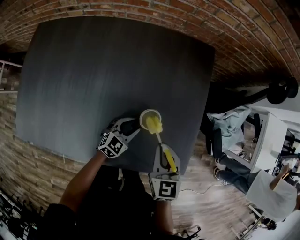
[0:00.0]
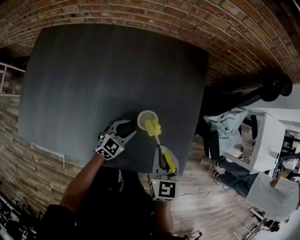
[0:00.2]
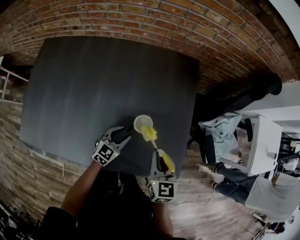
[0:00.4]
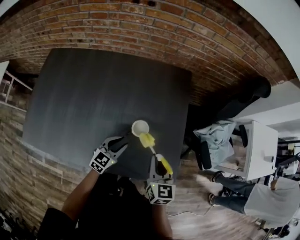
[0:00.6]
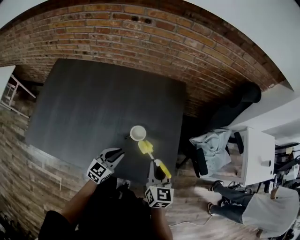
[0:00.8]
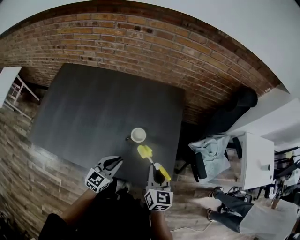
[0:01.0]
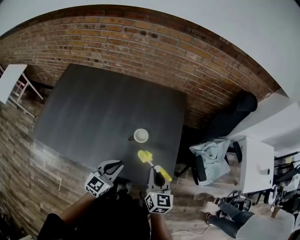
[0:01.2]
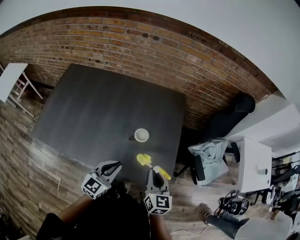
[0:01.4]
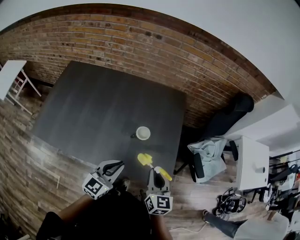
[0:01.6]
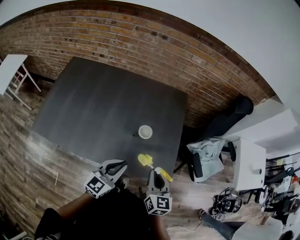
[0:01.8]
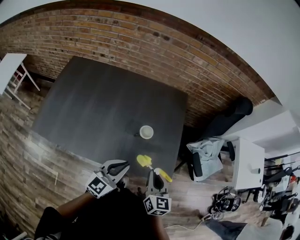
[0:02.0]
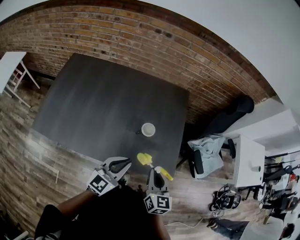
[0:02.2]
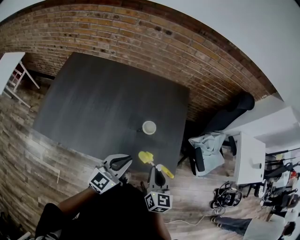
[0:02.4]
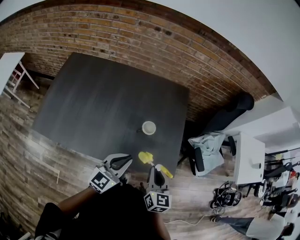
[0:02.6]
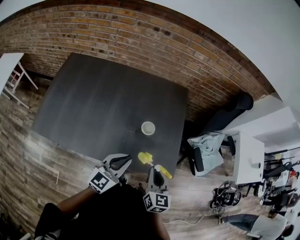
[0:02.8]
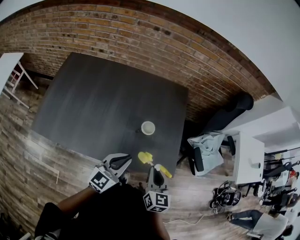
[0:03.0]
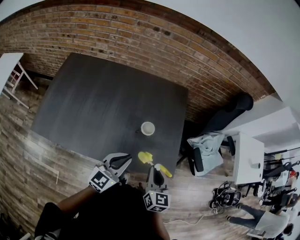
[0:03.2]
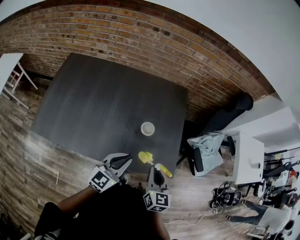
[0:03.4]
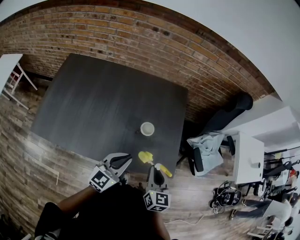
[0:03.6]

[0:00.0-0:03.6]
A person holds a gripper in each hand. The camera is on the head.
0:00.0 to 0:01.8: The left gripper shifts approximately 40 cm upward and backward, and turns by approximately 30 degrees. The right gripper travels backward and upward by some 25 cm.
0:01.8 to 0:03.6: The grippers stay close to where they were, moving slightly.

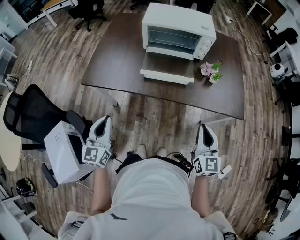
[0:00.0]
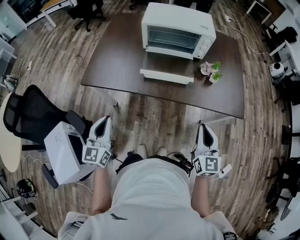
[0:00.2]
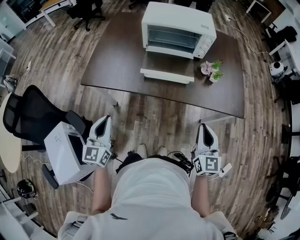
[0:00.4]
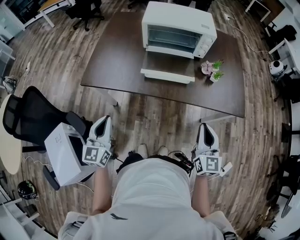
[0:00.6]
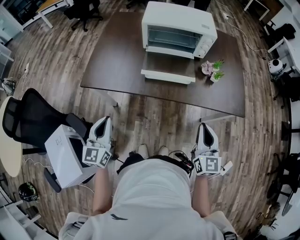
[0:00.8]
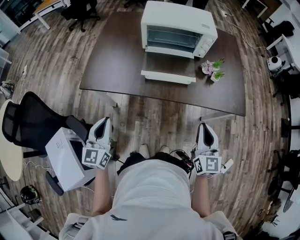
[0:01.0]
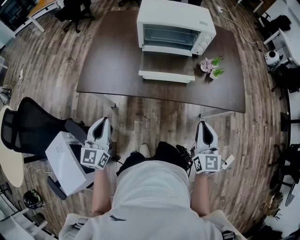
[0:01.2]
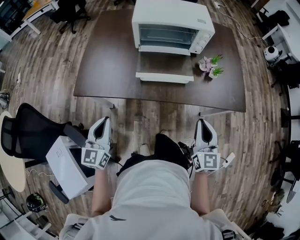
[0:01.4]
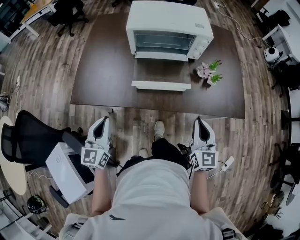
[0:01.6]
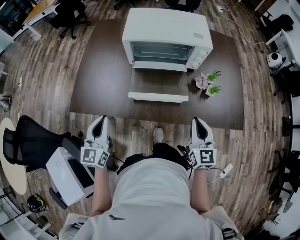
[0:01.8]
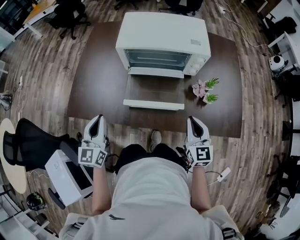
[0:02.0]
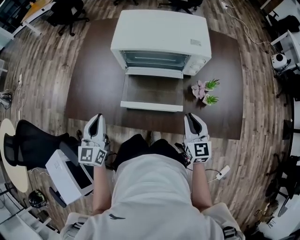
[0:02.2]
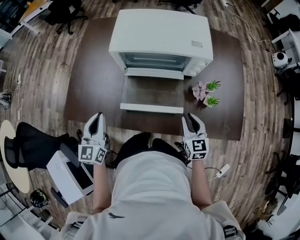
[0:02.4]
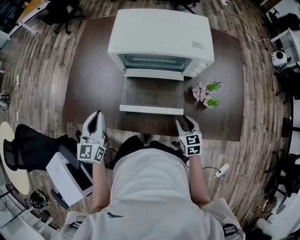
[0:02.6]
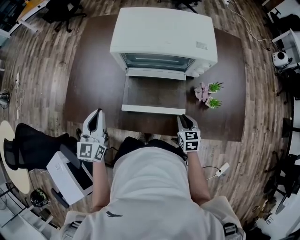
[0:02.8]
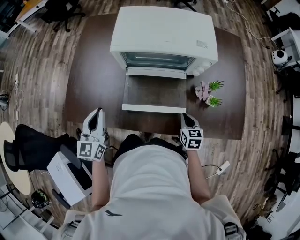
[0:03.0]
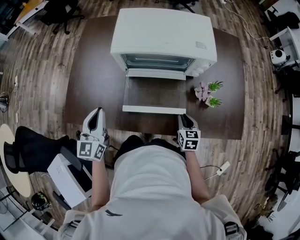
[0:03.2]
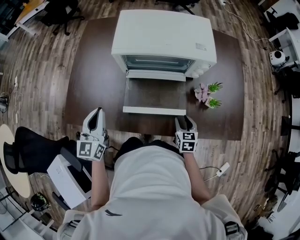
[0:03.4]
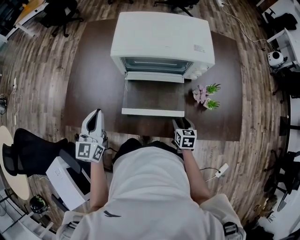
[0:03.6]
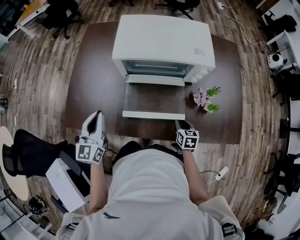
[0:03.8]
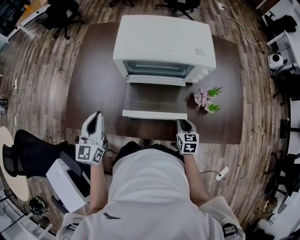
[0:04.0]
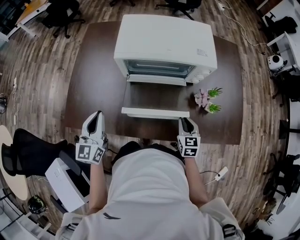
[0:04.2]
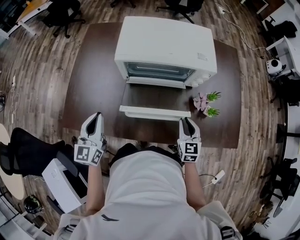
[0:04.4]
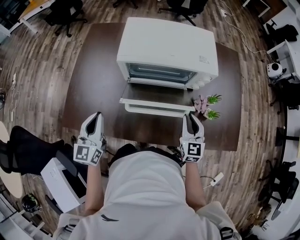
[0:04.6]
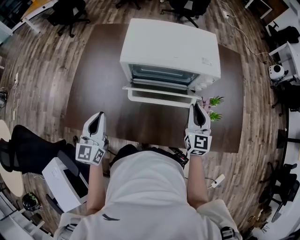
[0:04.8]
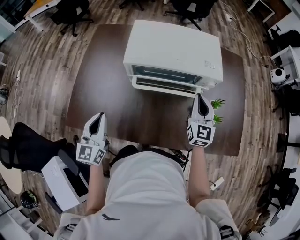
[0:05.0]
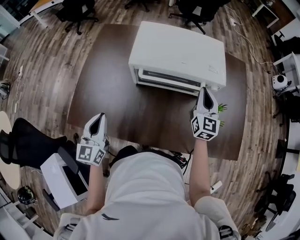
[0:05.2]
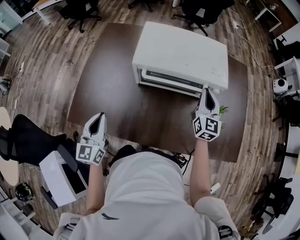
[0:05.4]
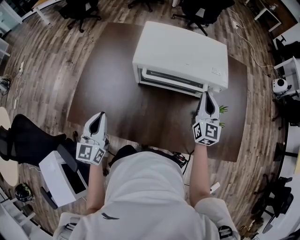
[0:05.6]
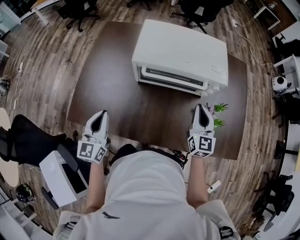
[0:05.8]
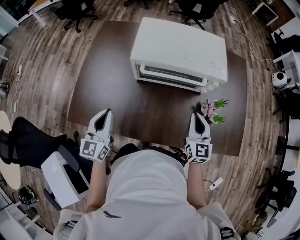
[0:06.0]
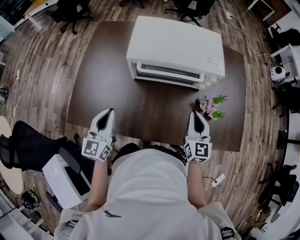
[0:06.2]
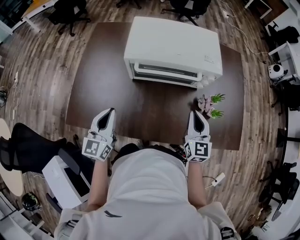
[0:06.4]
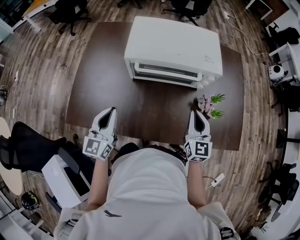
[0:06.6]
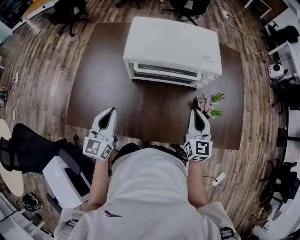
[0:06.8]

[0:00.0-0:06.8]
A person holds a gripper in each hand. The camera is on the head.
0:00.0 to 0:01.4: The left gripper shifts about 5 cm forward. The right gripper changes place by some 5 cm.
0:01.4 to 0:02.8: The left gripper heads forward, covering about 25 cm. The right gripper heads forward and downward, covering some 30 cm, points its fingers about 30 degrees further downward, and opens up.
0:02.8 to 0:04.0: The right gripper opens and closes again.
0:04.0 to 0:05.4: The right gripper is displaced upward and forward by approximately 30 cm, and tilts its fingers roughly 40 degrees upward.
0:05.4 to 0:06.8: The left gripper heads to the right, covering about 5 cm; the right gripper shifts roughly 15 cm backward.

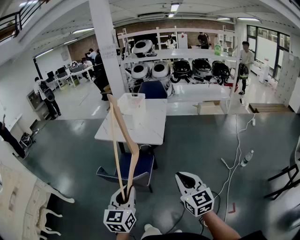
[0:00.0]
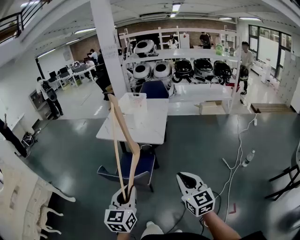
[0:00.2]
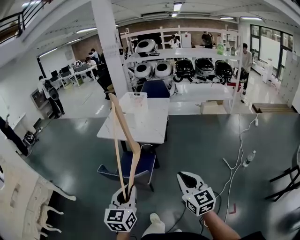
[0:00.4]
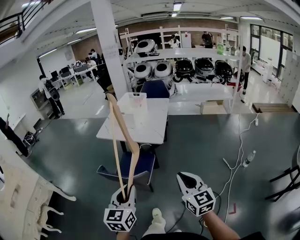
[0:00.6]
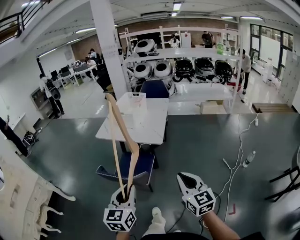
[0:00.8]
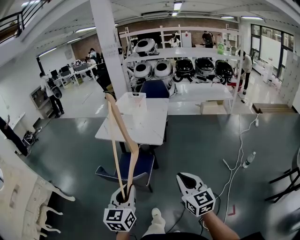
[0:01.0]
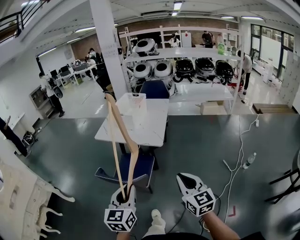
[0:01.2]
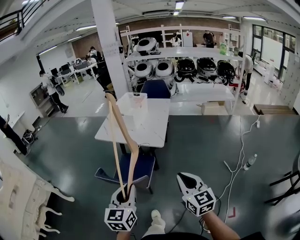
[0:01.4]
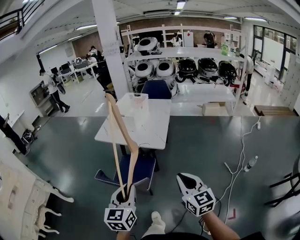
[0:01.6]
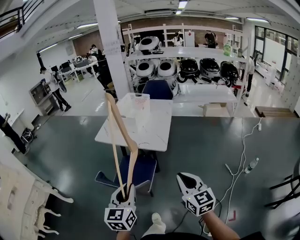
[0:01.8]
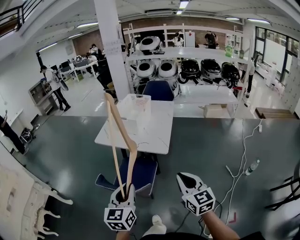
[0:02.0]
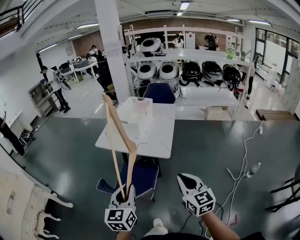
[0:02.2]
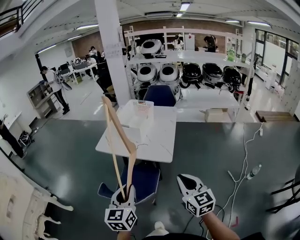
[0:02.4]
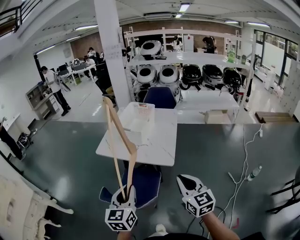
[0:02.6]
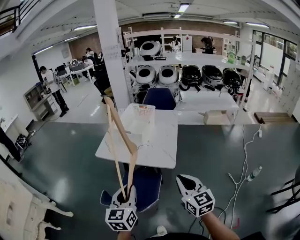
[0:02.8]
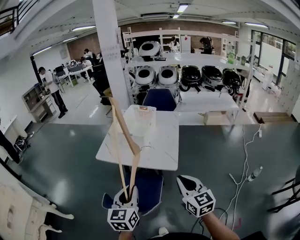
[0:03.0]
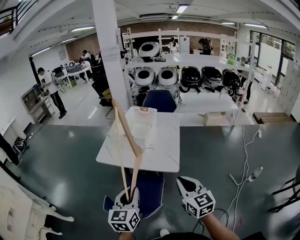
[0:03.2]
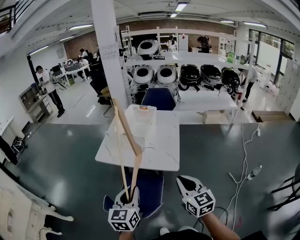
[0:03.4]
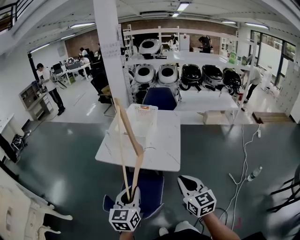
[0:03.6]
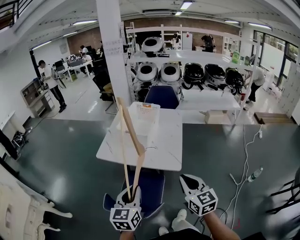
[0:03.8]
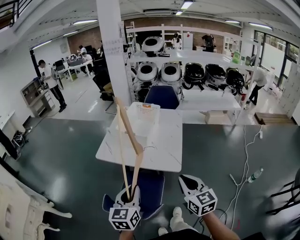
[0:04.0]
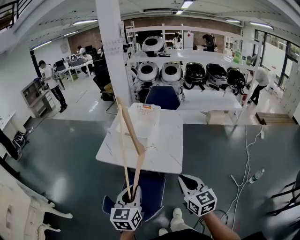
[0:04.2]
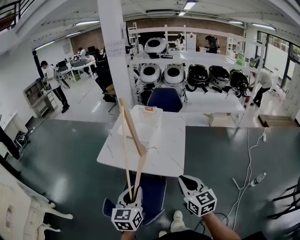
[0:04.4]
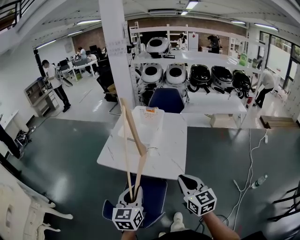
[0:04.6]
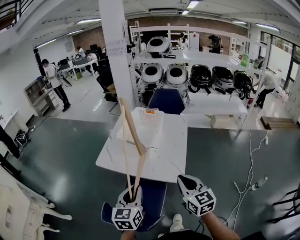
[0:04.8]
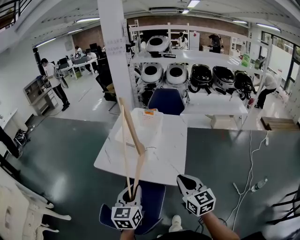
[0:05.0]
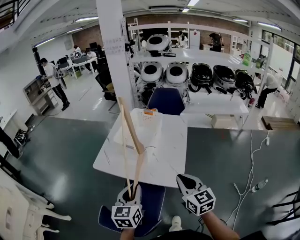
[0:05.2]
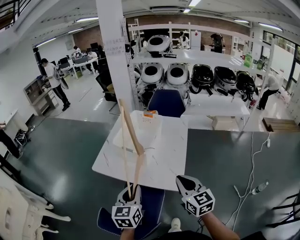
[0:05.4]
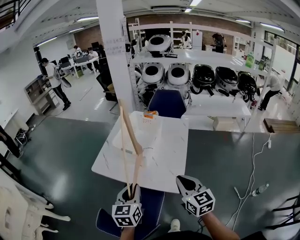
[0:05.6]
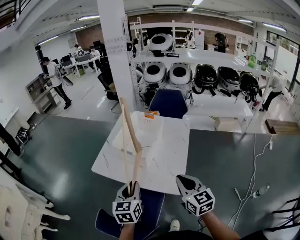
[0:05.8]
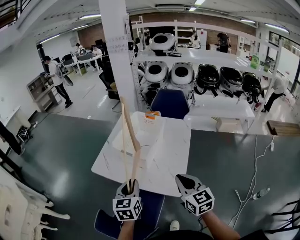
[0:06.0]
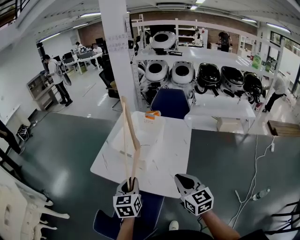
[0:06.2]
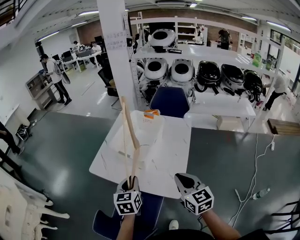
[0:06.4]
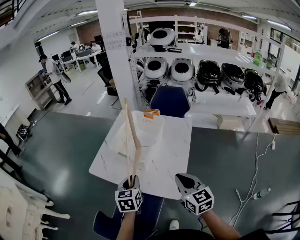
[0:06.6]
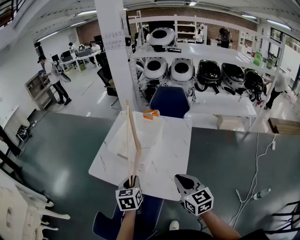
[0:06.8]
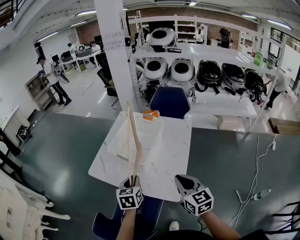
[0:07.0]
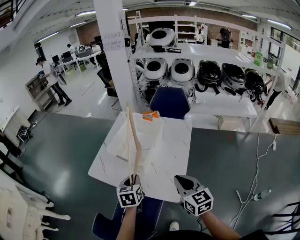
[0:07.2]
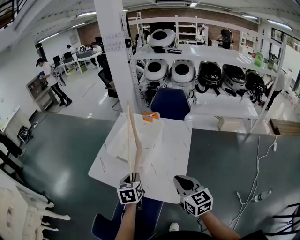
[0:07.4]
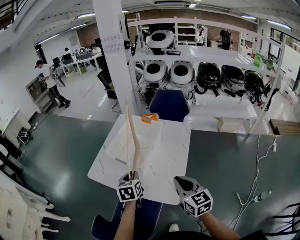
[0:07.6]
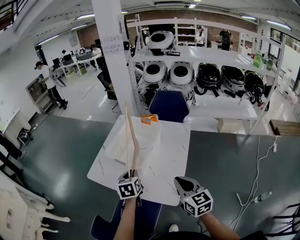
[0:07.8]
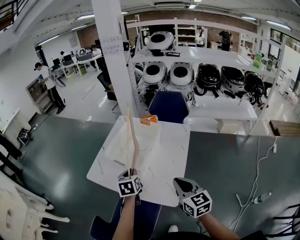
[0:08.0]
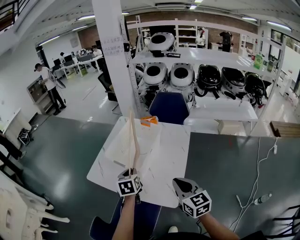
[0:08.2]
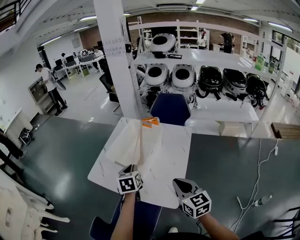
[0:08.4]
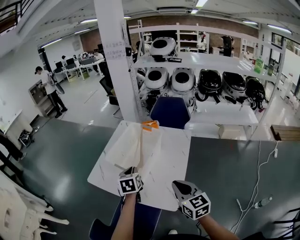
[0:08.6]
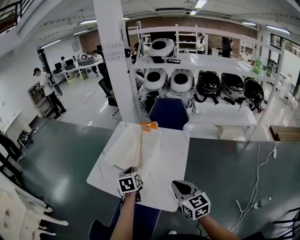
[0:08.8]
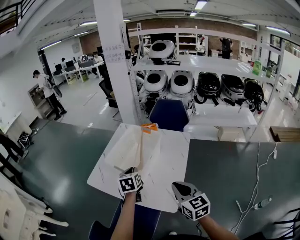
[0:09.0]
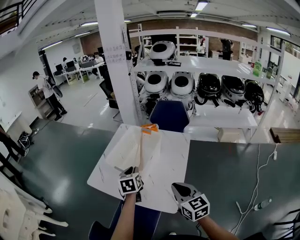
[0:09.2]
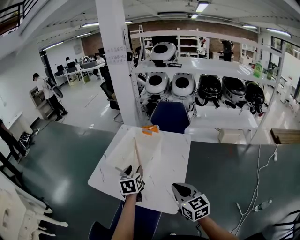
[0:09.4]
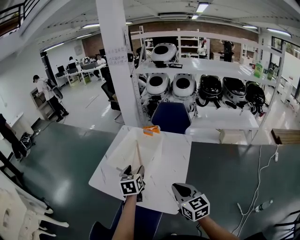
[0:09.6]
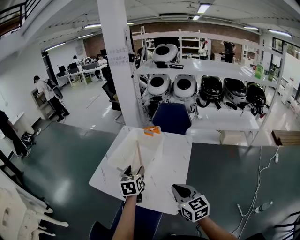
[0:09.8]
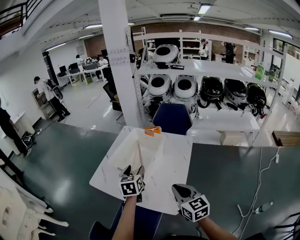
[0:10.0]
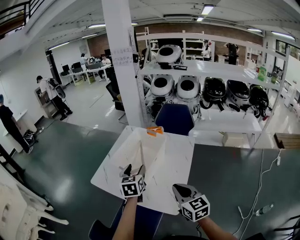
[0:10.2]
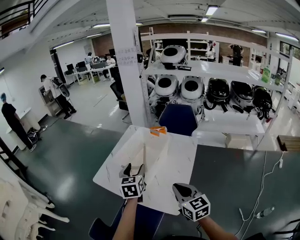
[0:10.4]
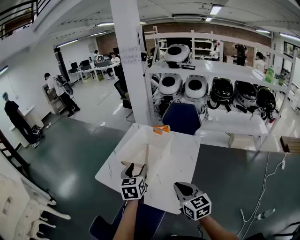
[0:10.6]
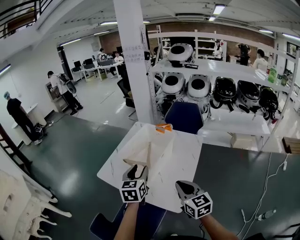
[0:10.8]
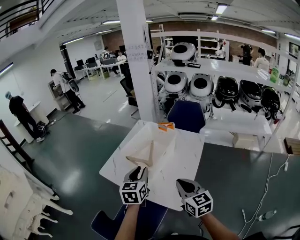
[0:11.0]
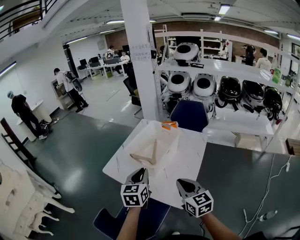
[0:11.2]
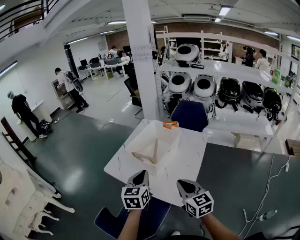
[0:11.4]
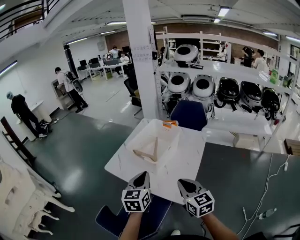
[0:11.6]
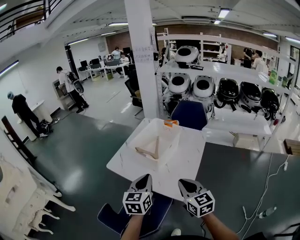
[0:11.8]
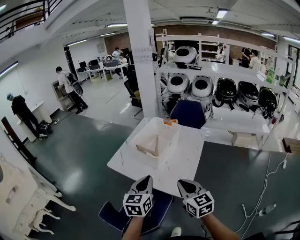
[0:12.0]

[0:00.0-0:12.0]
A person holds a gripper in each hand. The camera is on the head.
0:00.0 to 0:01.6: The two grippers go about 5 cm forward.
0:01.6 to 0:03.0: The right gripper goes about 20 cm forward and to the left. Meanwhile the left gripper is displaced forward by about 20 cm.
0:03.0 to 0:04.4: The grippers both shift forward by about 5 cm.
0:04.4 to 0:06.0: The two grippers go roughly 15 cm forward.
0:06.0 to 0:07.6: The right gripper shifts approximately 5 cm forward. Meanwhile the left gripper heads forward and downward, covering approximately 15 cm.
0:07.6 to 0:09.0: The left gripper goes approximately 5 cm forward.
0:09.0 to 0:10.4: The left gripper goes some 5 cm upward, and opens up.
0:10.4 to 0:12.0: The right gripper heads backward and to the left, covering about 10 cm. The left gripper moves backward, about 20 cm, and closes up.

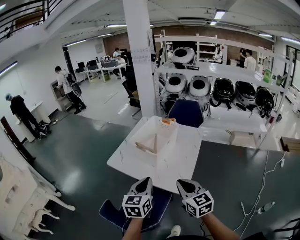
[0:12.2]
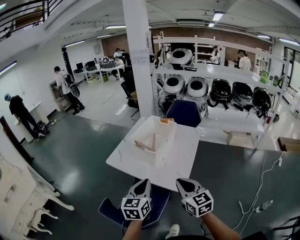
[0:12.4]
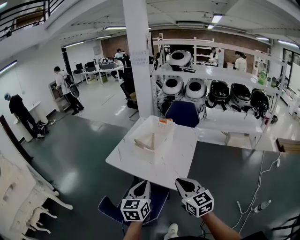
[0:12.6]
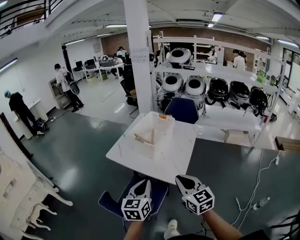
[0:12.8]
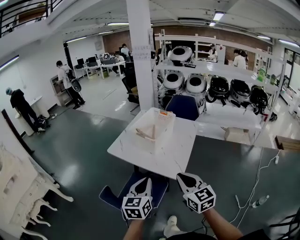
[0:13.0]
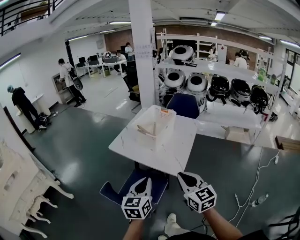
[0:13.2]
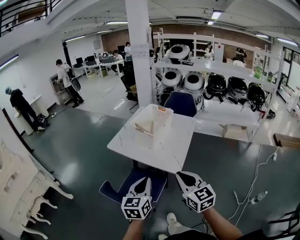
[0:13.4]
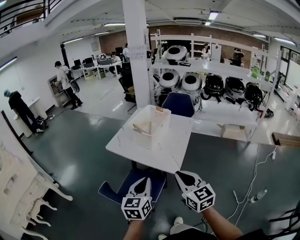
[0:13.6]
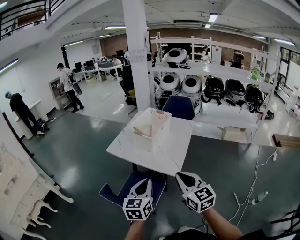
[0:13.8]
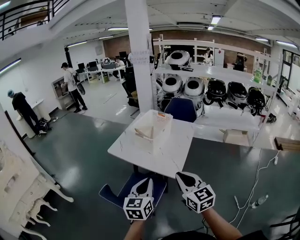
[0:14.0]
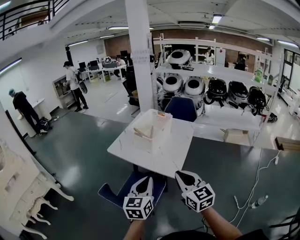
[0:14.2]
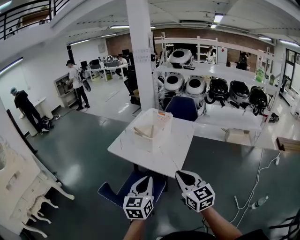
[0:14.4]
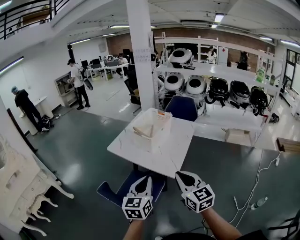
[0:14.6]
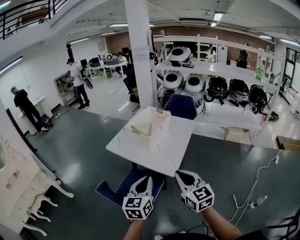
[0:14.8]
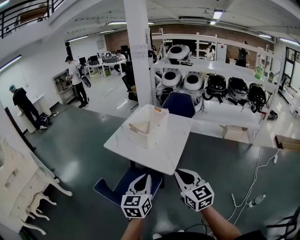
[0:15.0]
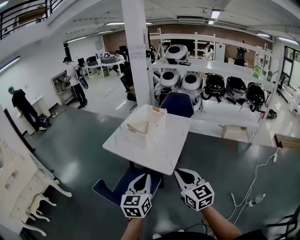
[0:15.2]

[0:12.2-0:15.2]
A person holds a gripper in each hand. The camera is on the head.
0:12.2 to 0:13.8: The two grippers go approximately 15 cm backward.
0:13.8 to 0:15.2: The grippers both shift to the right by some 5 cm.
